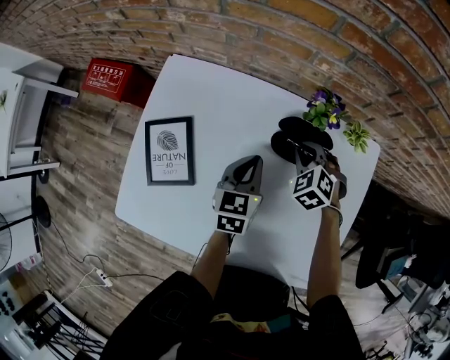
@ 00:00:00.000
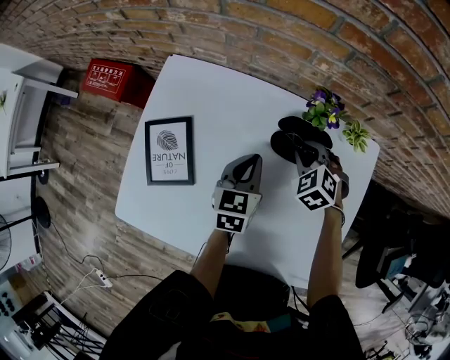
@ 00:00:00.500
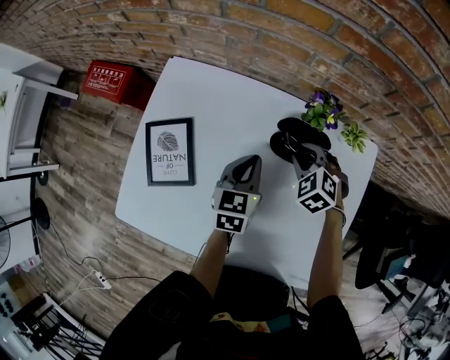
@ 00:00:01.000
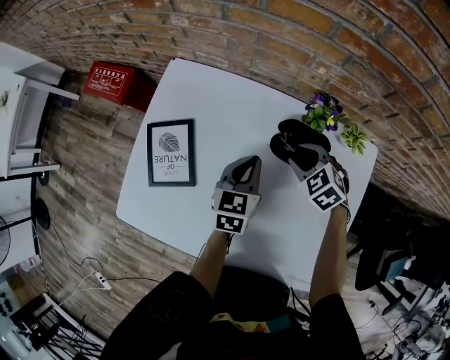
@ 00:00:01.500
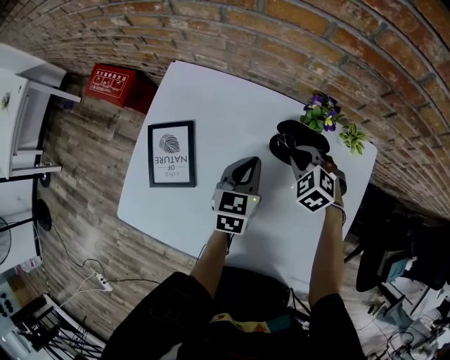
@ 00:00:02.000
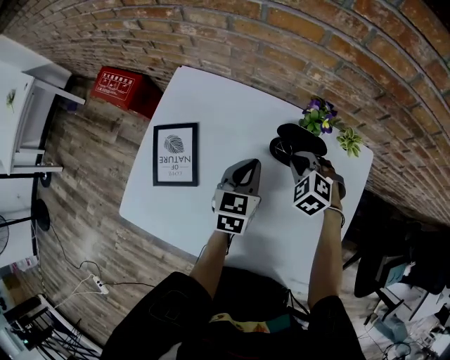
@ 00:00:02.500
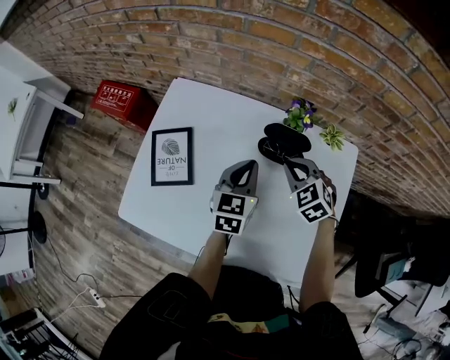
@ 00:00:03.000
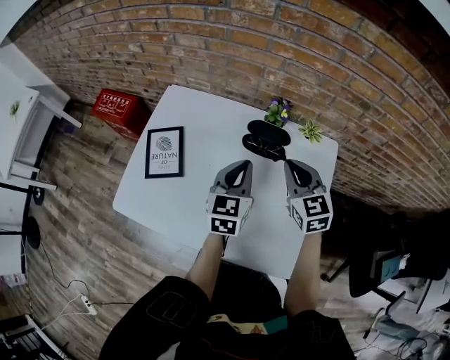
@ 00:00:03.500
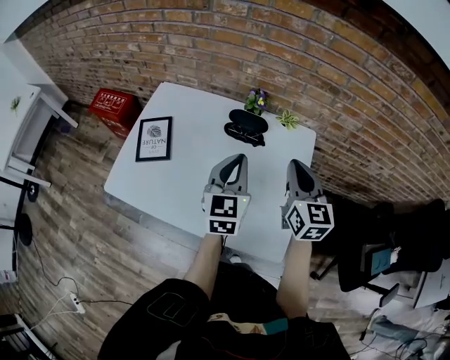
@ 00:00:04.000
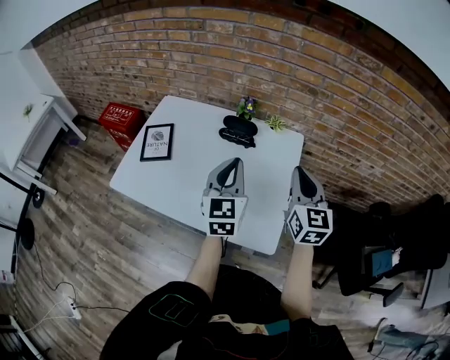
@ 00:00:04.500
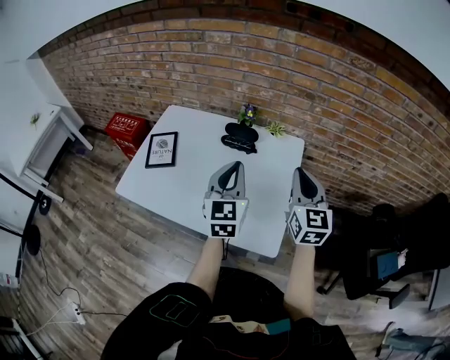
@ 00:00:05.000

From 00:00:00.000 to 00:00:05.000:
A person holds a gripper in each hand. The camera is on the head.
From 00:00:00.000 to 00:00:02.500: There are only small adjustments of the grippers.
From 00:00:02.500 to 00:00:05.000: The left gripper travels backward, upward and to the right by approximately 35 cm, and rotates about 30 degrees, while the right gripper moves upward, backward and to the right, roughly 40 cm, and tilts its fingers approximately 60 degrees upward.

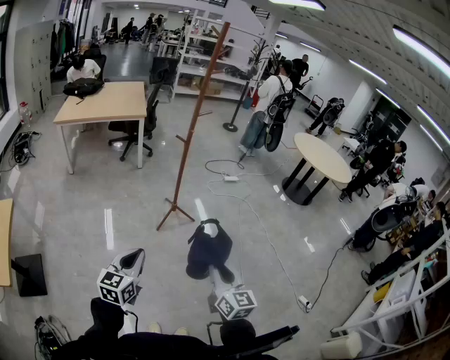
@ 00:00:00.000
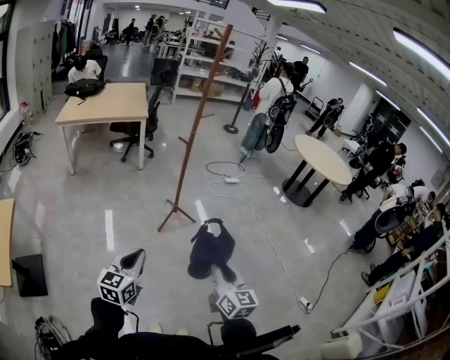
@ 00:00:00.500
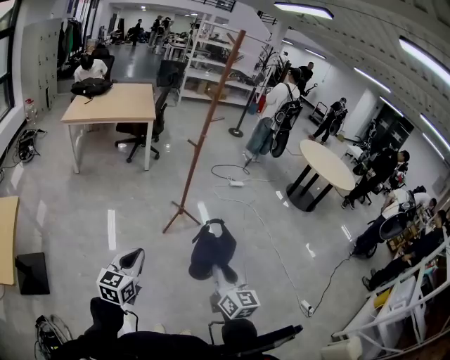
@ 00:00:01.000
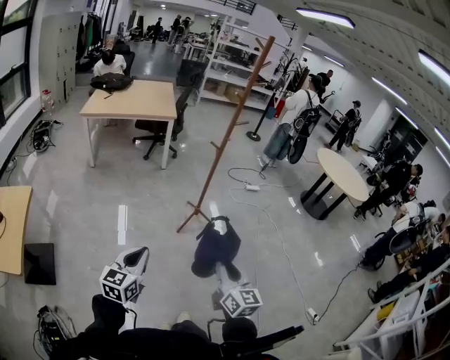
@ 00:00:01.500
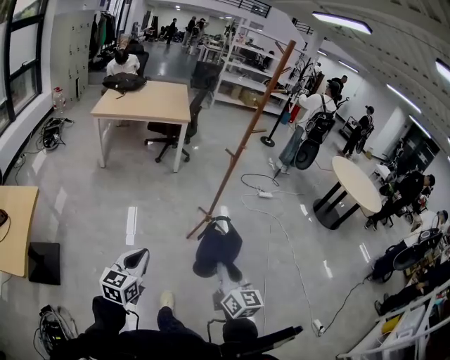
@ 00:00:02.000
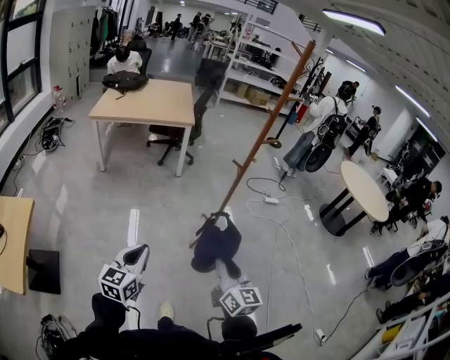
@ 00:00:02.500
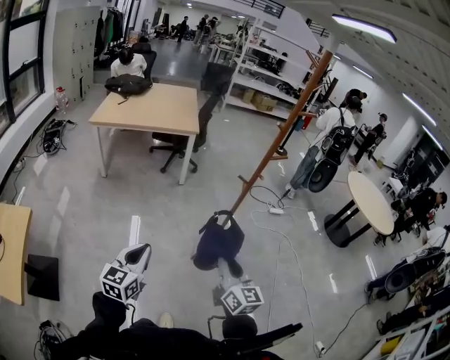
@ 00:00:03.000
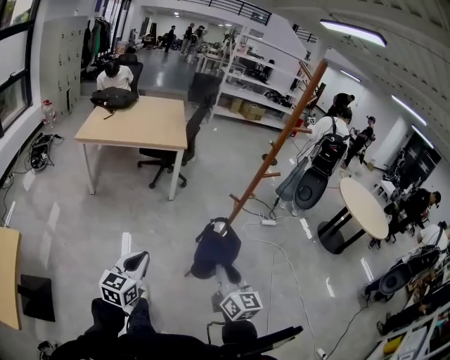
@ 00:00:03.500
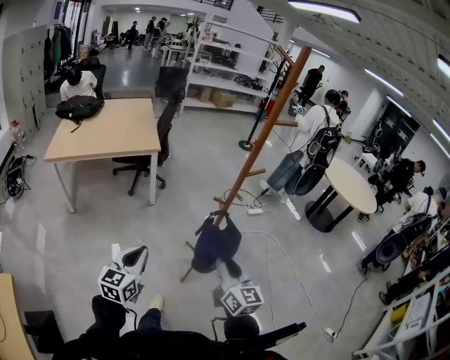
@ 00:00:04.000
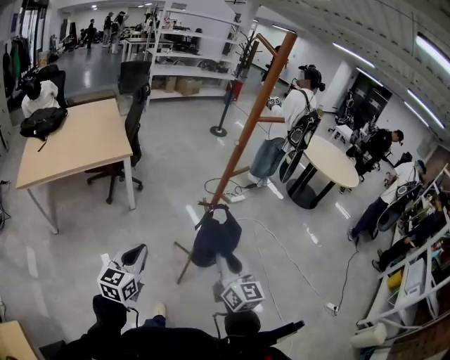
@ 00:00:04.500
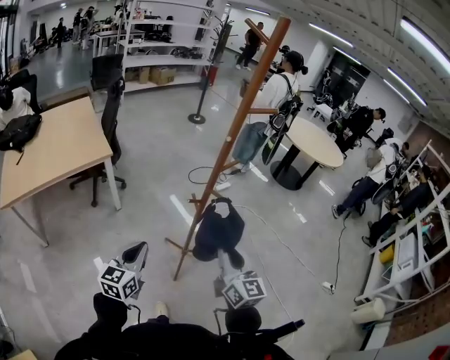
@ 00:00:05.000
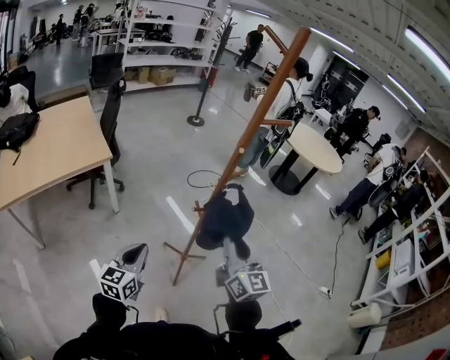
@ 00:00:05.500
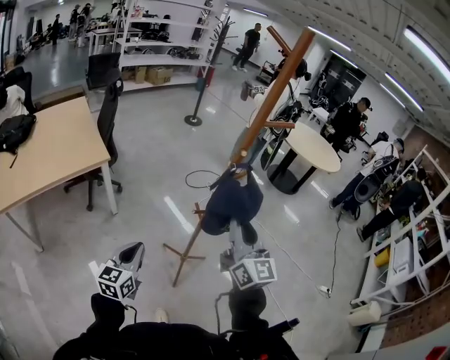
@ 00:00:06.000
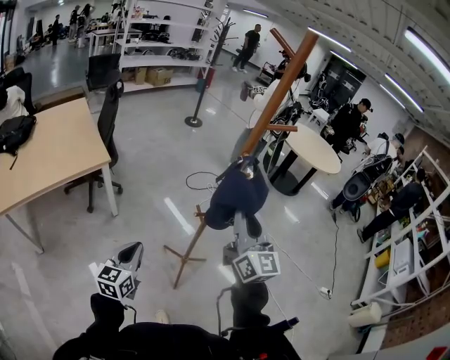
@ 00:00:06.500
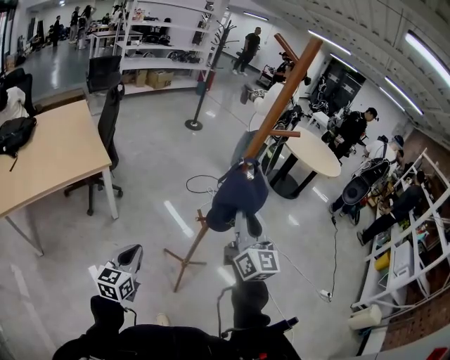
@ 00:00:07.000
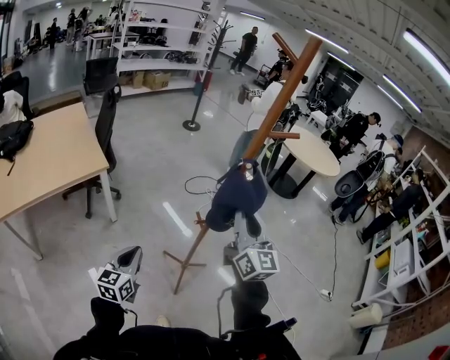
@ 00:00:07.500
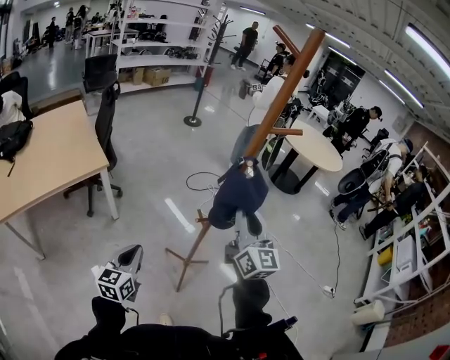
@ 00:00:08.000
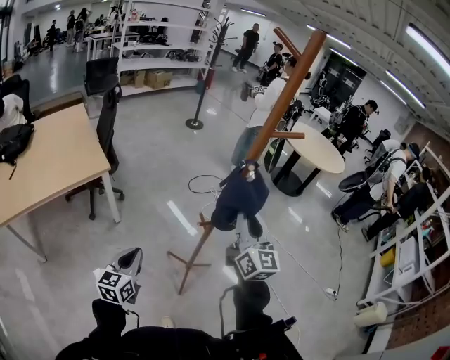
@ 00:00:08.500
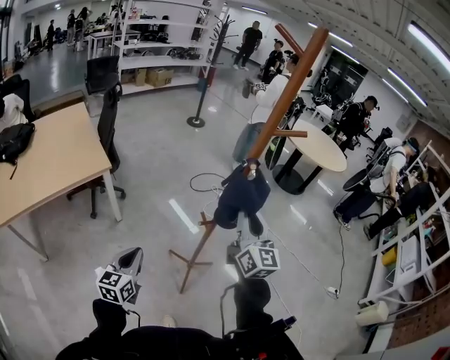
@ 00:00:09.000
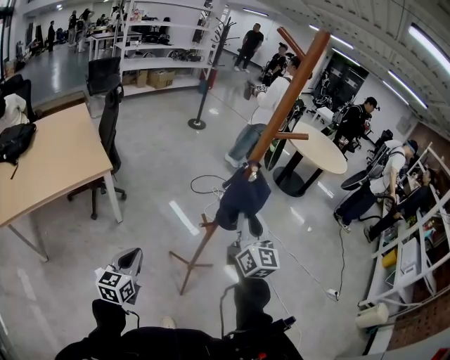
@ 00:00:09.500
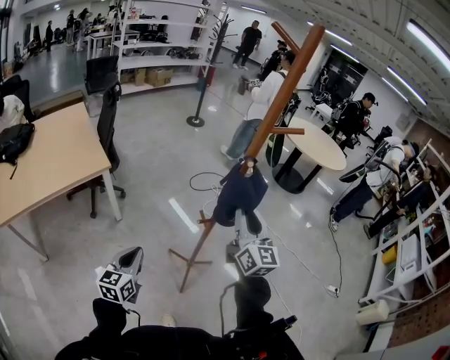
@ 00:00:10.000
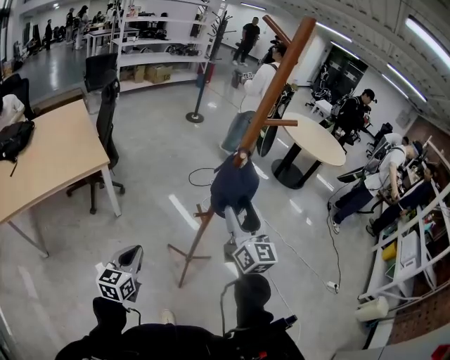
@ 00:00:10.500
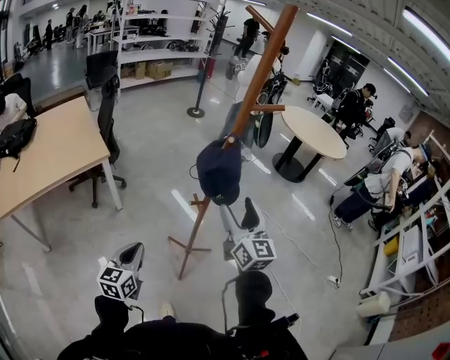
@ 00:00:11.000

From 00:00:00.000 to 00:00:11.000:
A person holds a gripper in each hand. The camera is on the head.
From 00:00:00.000 to 00:00:02.000: The right gripper is displaced to the left and forward by some 15 cm, while the left gripper is displaced to the left by approximately 15 cm.
From 00:00:02.000 to 00:00:03.500: Both grippers move forward, roughly 25 cm.
From 00:00:03.500 to 00:00:05.500: The left gripper changes place by some 30 cm, and changes its angle by some 30 degrees; the right gripper ends up approximately 20 cm from where it was, and rotates roughly 30 degrees.
From 00:00:05.500 to 00:00:07.500: The right gripper shifts some 10 cm forward and upward; the left gripper changes place by some 5 cm.
From 00:00:07.500 to 00:00:09.000: The grippers move only a little.
From 00:00:09.000 to 00:00:11.000: The left gripper shifts roughly 5 cm backward. The right gripper ends up approximately 5 cm from where it was, and opens up.

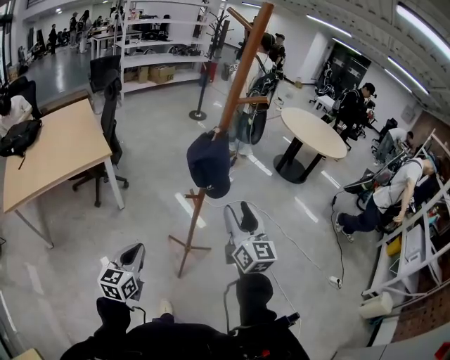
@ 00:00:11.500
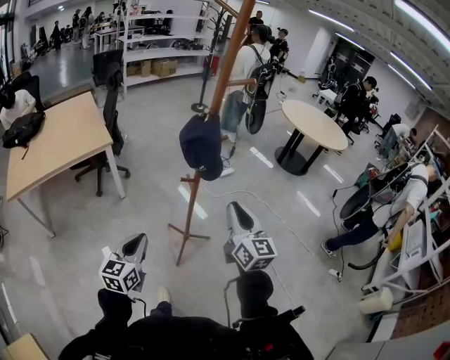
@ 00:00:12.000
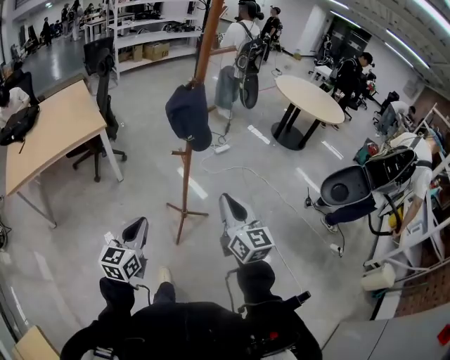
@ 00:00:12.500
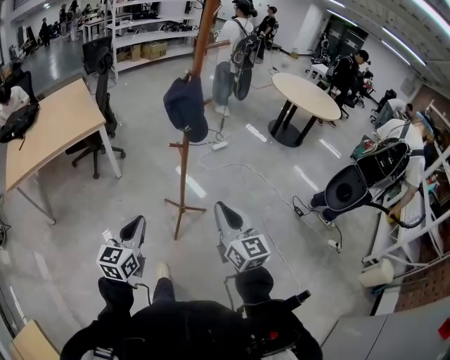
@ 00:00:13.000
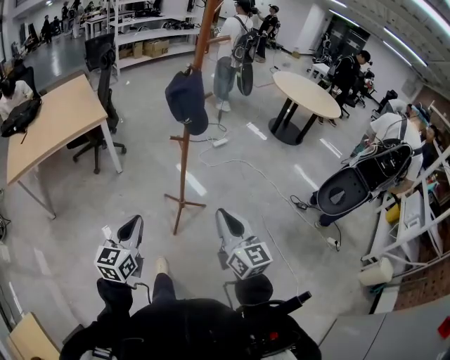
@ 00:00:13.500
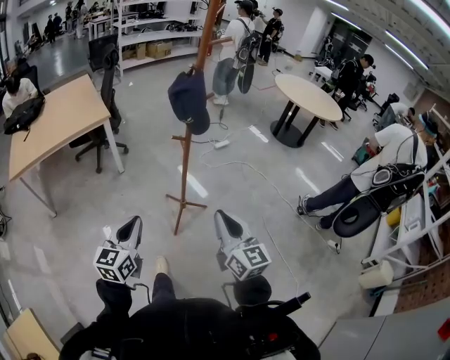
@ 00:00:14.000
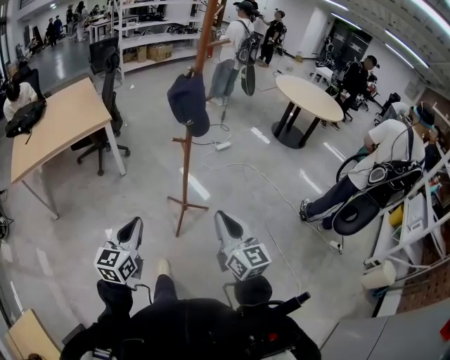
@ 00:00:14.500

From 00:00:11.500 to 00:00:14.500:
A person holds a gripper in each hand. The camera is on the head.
From 00:00:11.500 to 00:00:13.000: The left gripper is displaced backward and to the right by some 15 cm, while the right gripper heads backward, covering approximately 20 cm, and closes its fingers.
From 00:00:13.000 to 00:00:14.500: The right gripper shifts roughly 5 cm backward.

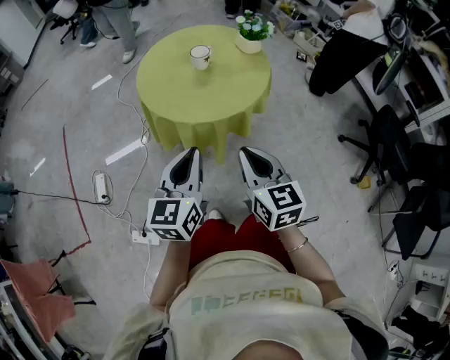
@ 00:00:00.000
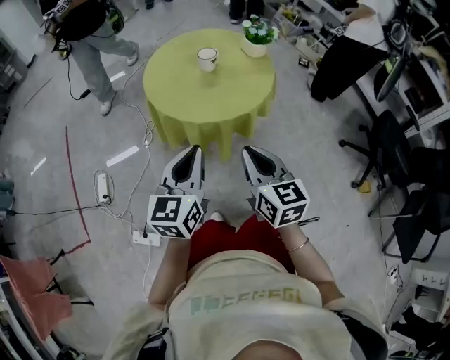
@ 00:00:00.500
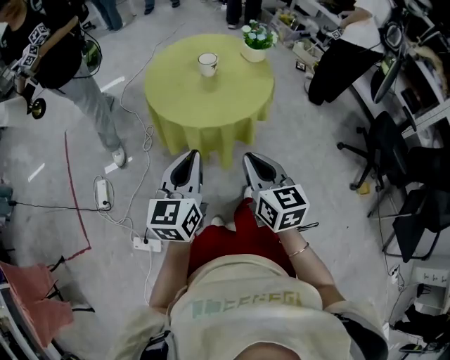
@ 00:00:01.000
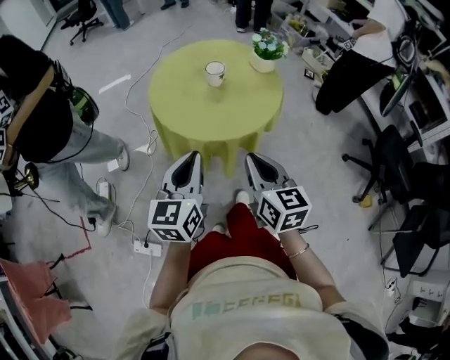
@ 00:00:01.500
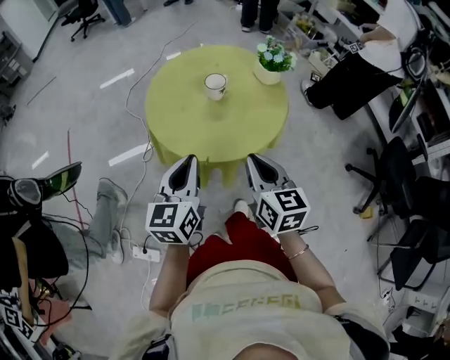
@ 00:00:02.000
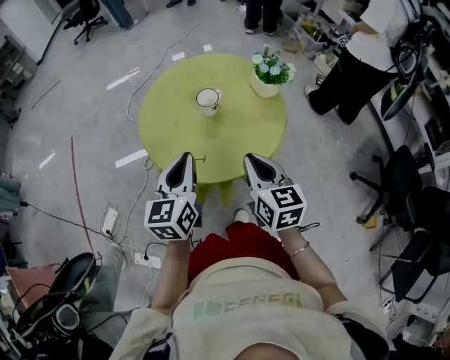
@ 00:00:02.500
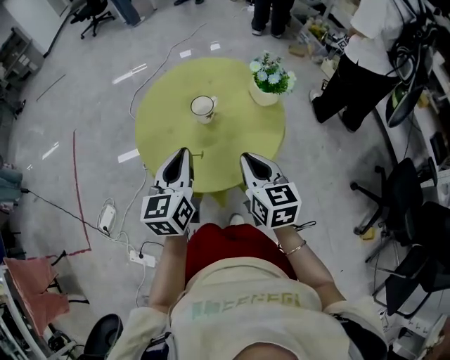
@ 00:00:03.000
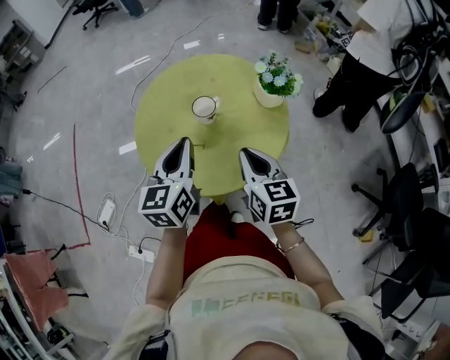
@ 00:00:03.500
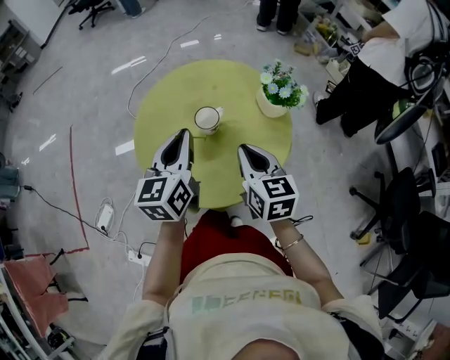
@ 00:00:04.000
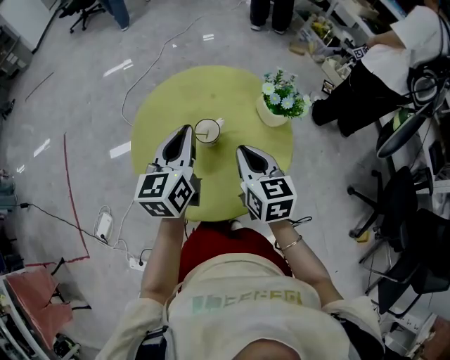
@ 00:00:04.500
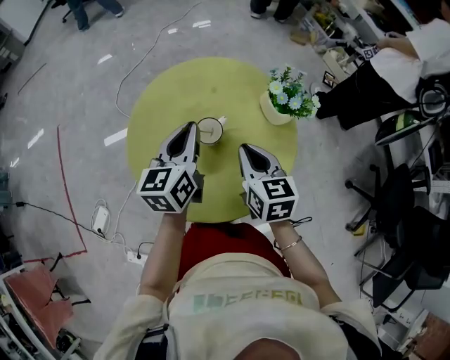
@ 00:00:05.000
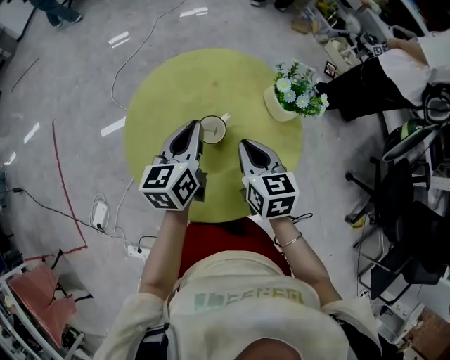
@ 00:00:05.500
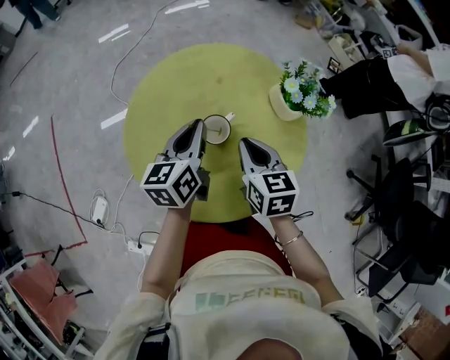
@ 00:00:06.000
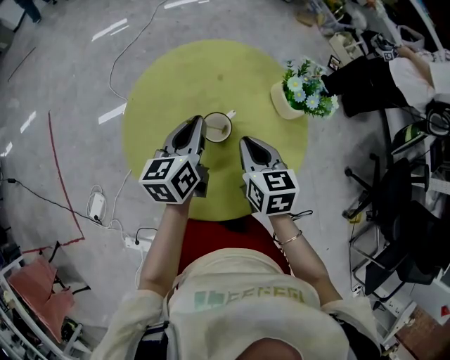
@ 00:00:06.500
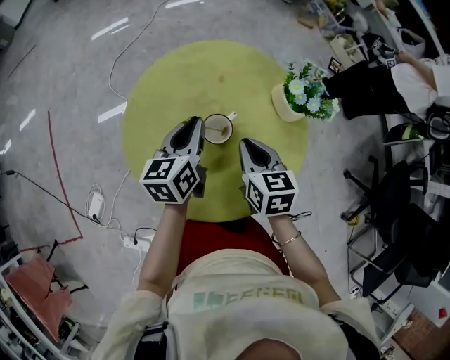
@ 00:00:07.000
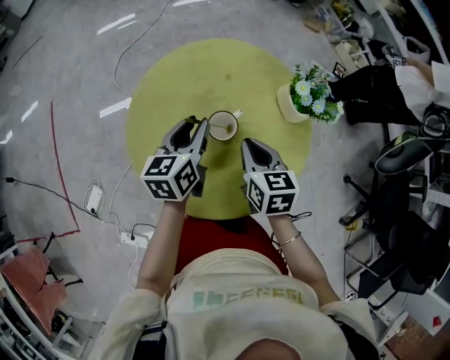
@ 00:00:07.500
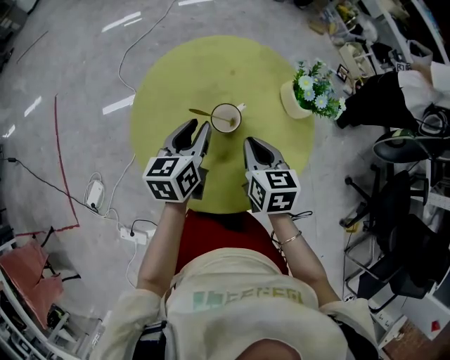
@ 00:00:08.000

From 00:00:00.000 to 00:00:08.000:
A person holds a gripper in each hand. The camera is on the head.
From 00:00:00.000 to 00:00:02.000: The grippers both shift forward by about 15 cm.
From 00:00:02.000 to 00:00:04.000: The two grippers go about 25 cm forward.
From 00:00:04.000 to 00:00:06.000: The grippers both shift forward and downward by some 15 cm.
From 00:00:06.000 to 00:00:08.000: The left gripper shifts by approximately 5 cm, and opens.
